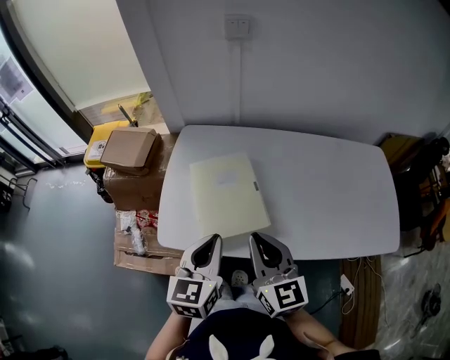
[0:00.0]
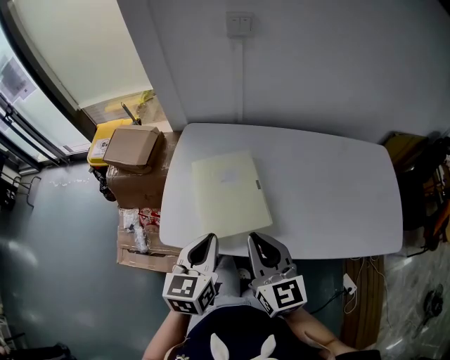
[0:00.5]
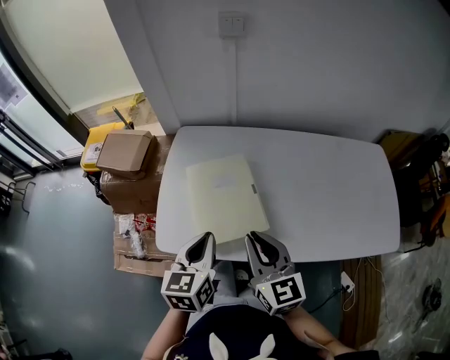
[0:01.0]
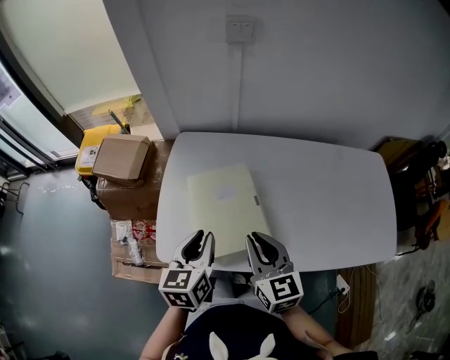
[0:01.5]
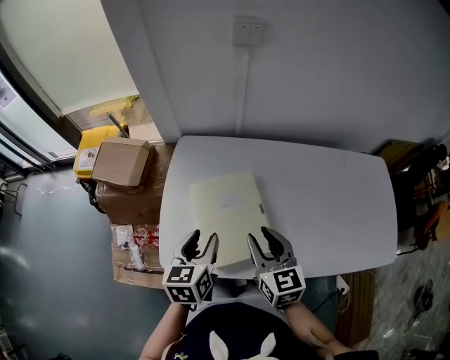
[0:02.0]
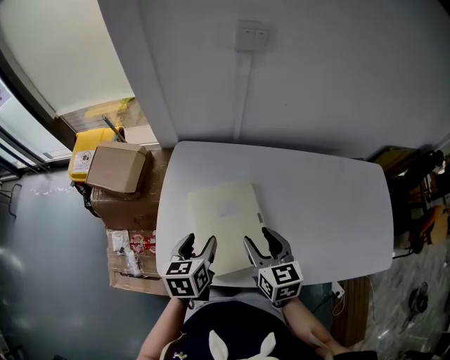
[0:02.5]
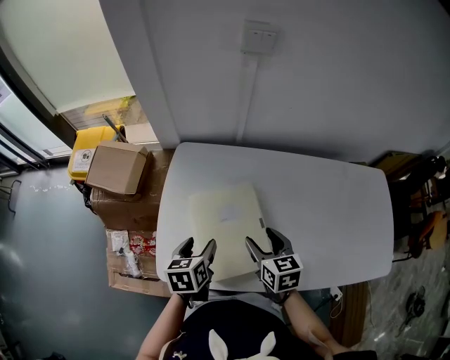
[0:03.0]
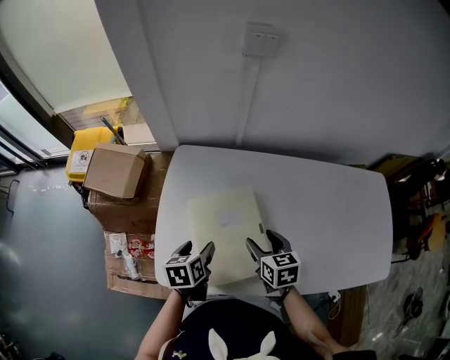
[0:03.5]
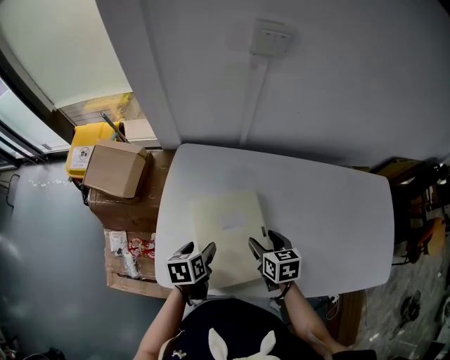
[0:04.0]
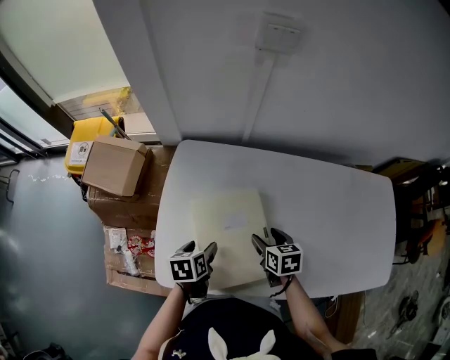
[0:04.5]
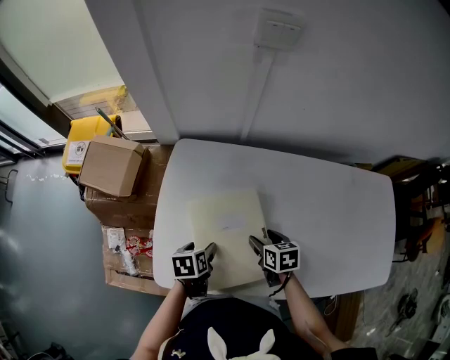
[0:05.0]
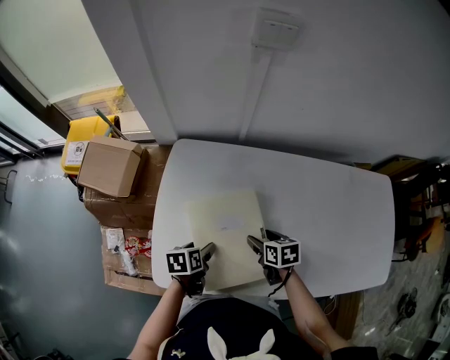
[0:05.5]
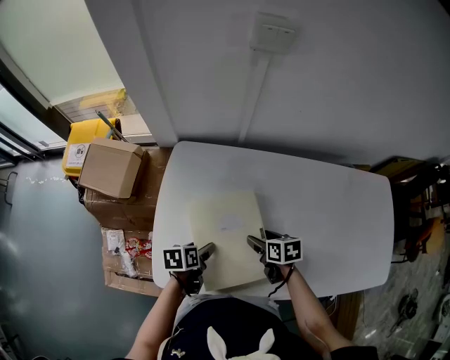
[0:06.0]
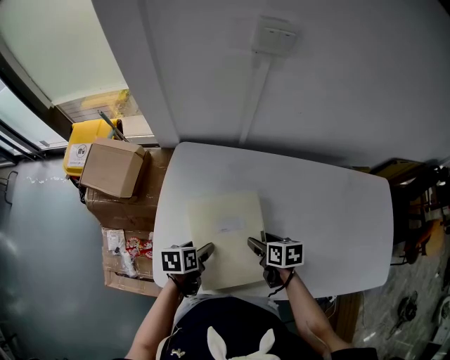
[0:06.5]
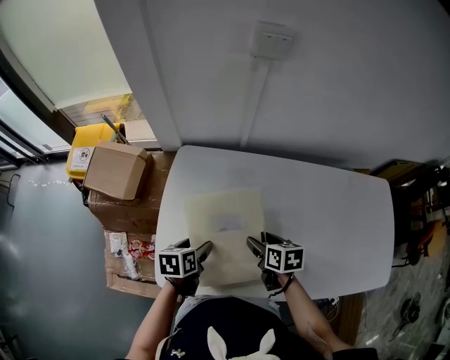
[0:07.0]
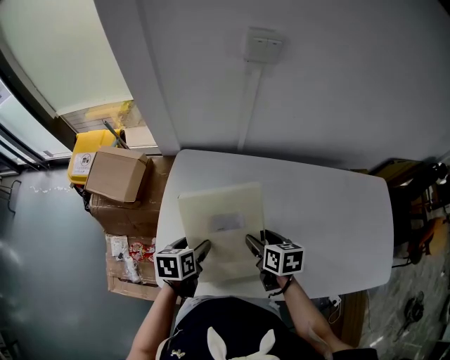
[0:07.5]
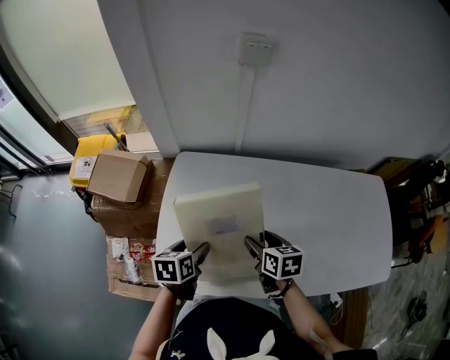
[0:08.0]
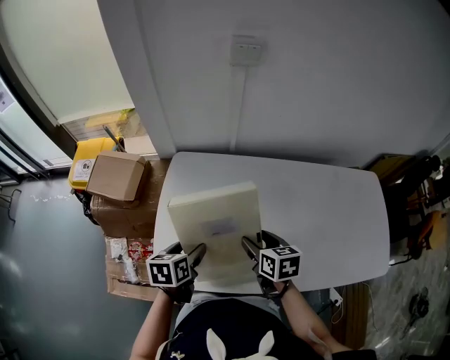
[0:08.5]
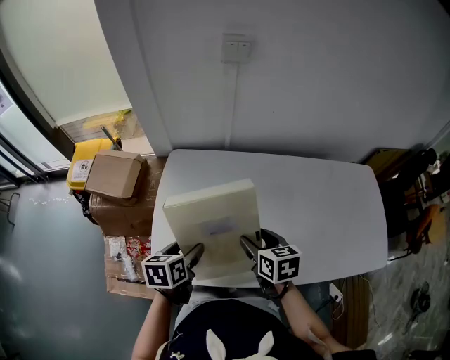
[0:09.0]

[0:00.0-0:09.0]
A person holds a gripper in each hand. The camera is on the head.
0:00.0 to 0:02.0: The left gripper travels forward, downward and to the left by roughly 15 cm, and opens its fingers, while the right gripper moves forward and downward, about 15 cm, and opens up.
0:02.0 to 0:04.5: The left gripper shifts some 15 cm downward, turns by approximately 30 degrees, and opens. The right gripper shifts some 20 cm downward and forward, rotates about 30 degrees, and opens up.
0:04.5 to 0:07.0: The grippers move only a little.
0:07.0 to 0:09.0: The grippers both shift upward and backward by about 10 cm.

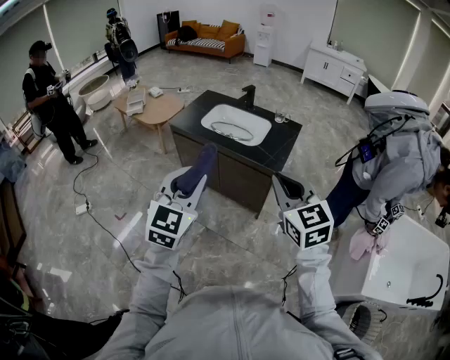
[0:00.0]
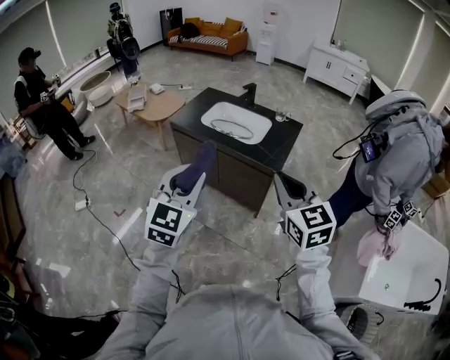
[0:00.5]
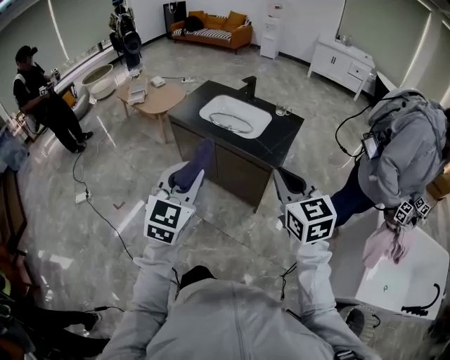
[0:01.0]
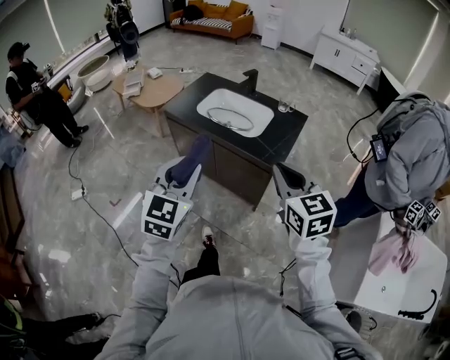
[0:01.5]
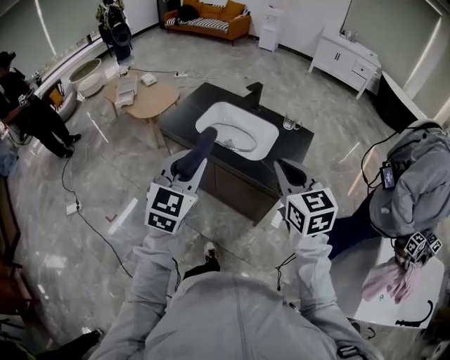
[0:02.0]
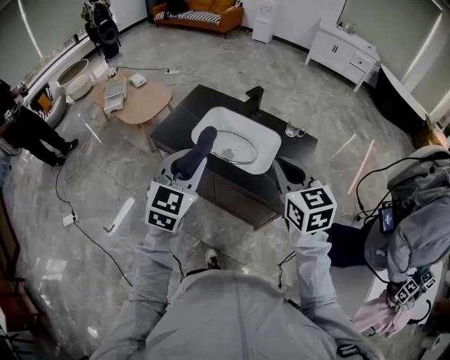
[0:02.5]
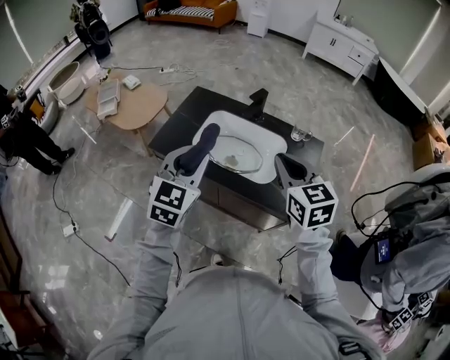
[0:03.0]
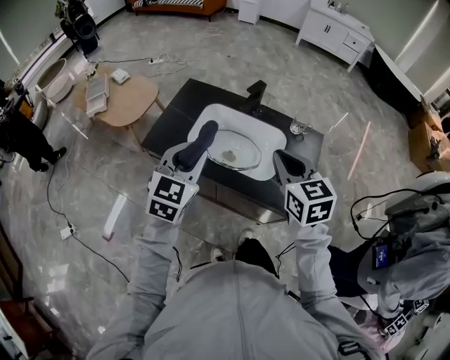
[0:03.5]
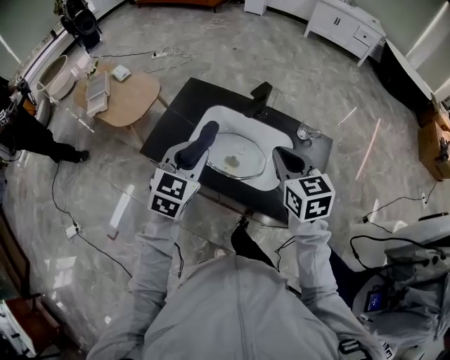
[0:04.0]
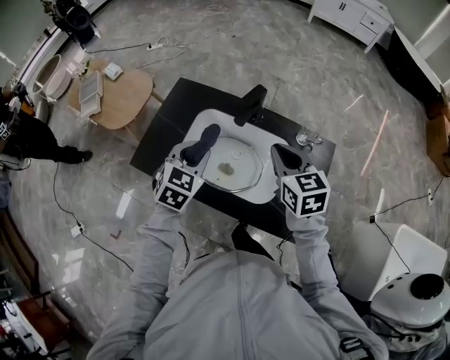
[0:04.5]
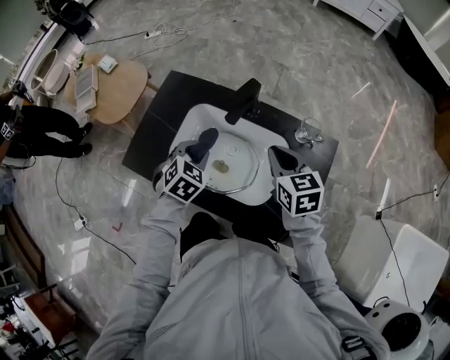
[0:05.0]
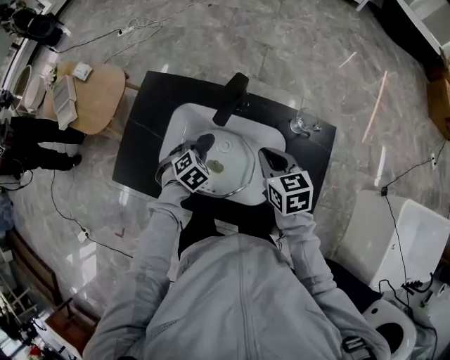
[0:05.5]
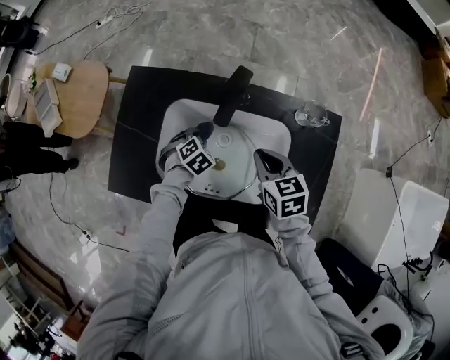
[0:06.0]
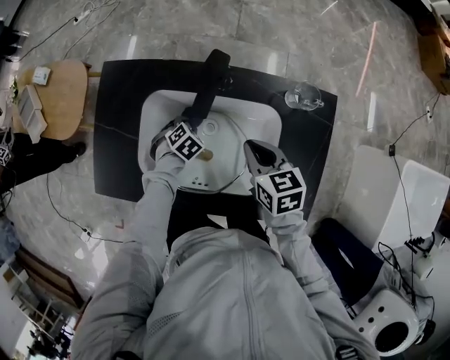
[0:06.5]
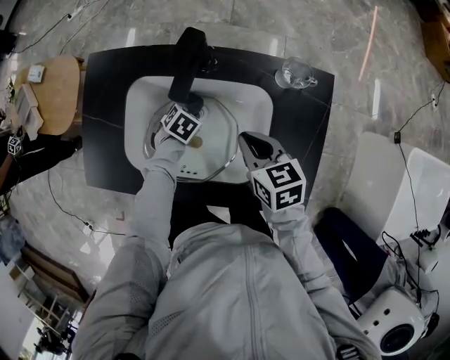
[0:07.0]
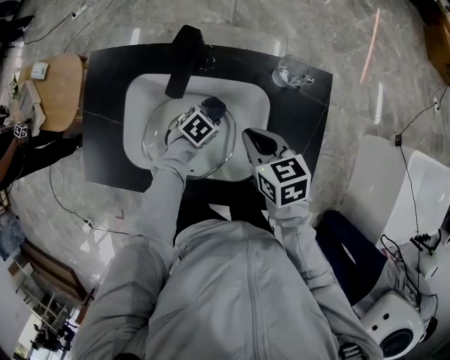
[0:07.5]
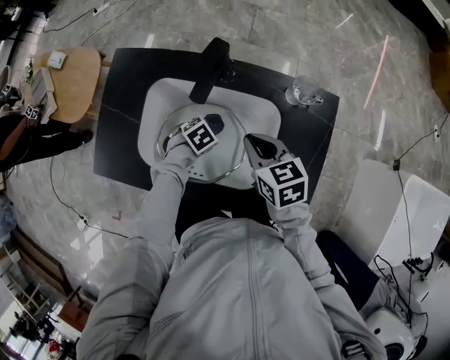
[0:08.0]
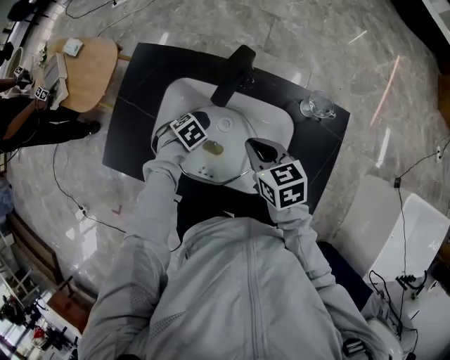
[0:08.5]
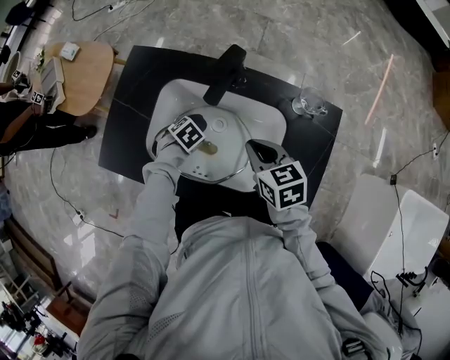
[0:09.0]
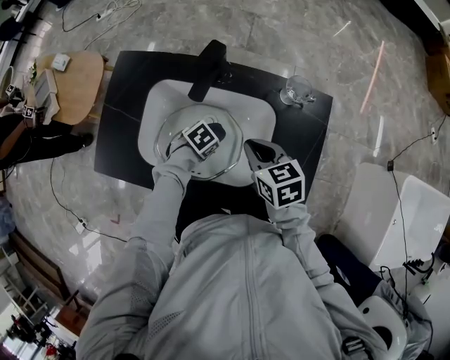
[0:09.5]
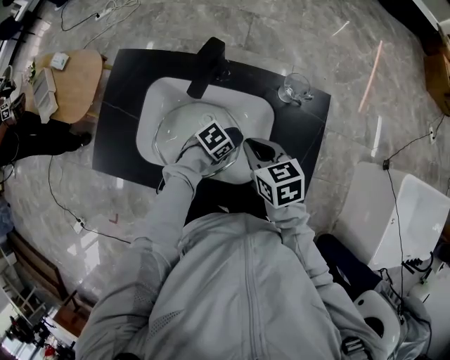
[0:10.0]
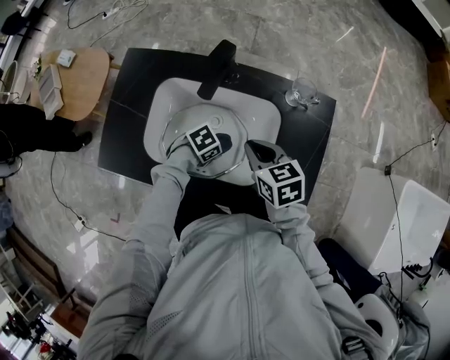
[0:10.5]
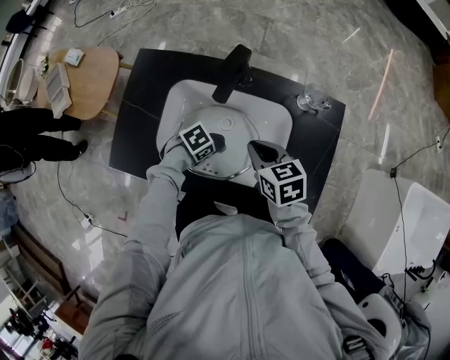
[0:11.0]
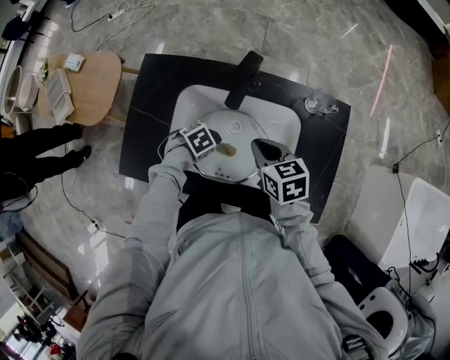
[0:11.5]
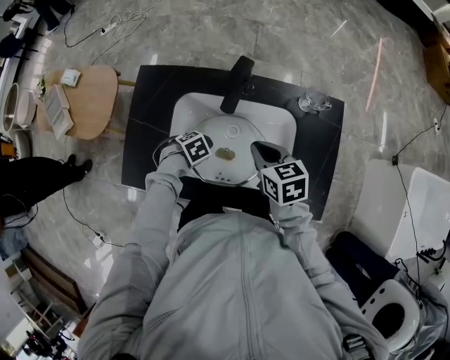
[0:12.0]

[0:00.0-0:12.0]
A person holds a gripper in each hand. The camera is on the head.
0:00.0 to 0:02.0: The two grippers go roughly 25 cm forward.
0:02.0 to 0:04.0: The grippers both shift forward by roughly 30 cm.
0:04.0 to 0:06.0: The left gripper goes roughly 40 cm downward and forward, and tips its fingers downward by approximately 50 degrees, while the right gripper travels downward and forward by approximately 25 cm, and changes its angle by approximately 20 degrees.
0:06.0 to 0:08.0: The left gripper ends up about 10 cm from where it was, and changes its angle by some 20 degrees.
0:08.0 to 0:10.0: The left gripper changes place by roughly 10 cm.
0:10.0 to 0:12.0: The right gripper moves some 5 cm. Meanwhile the left gripper ends up roughly 25 cm from where it was, and changes its angle by about 30 degrees.

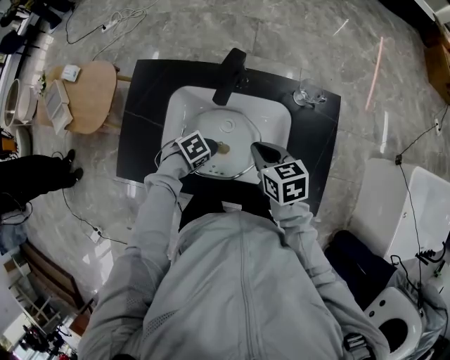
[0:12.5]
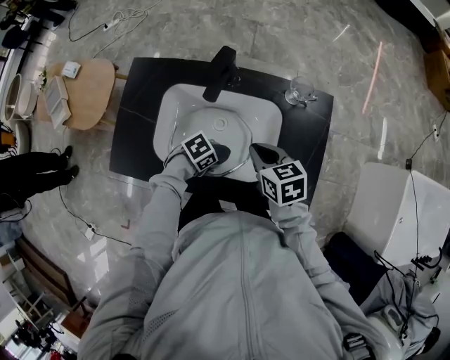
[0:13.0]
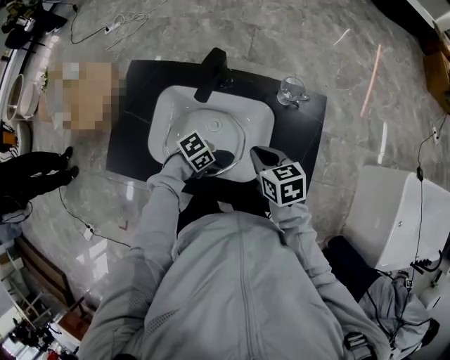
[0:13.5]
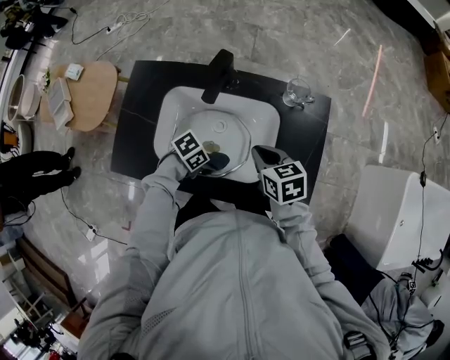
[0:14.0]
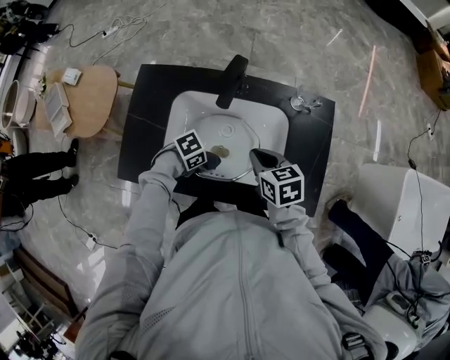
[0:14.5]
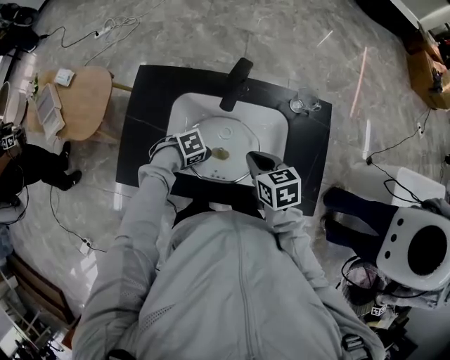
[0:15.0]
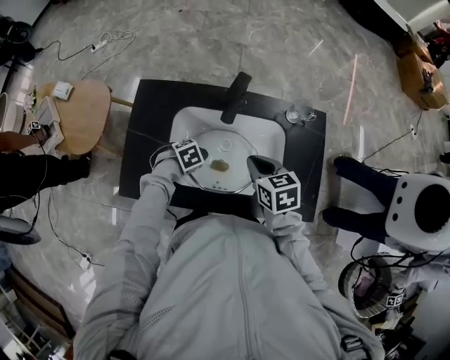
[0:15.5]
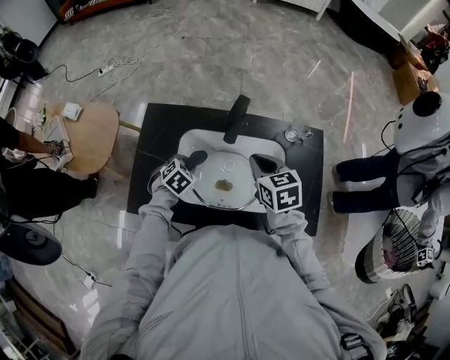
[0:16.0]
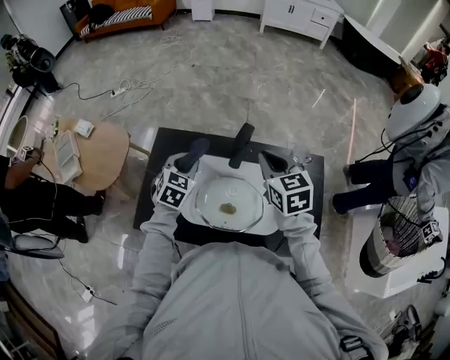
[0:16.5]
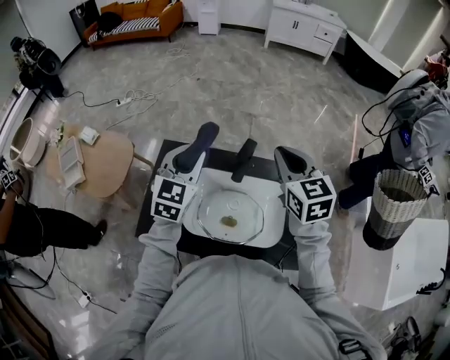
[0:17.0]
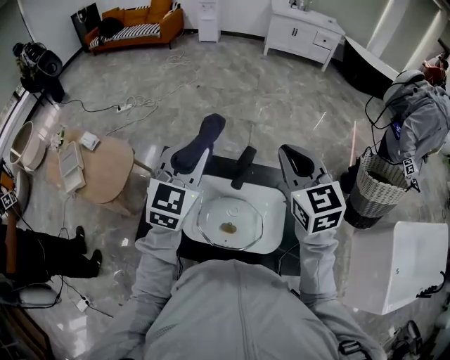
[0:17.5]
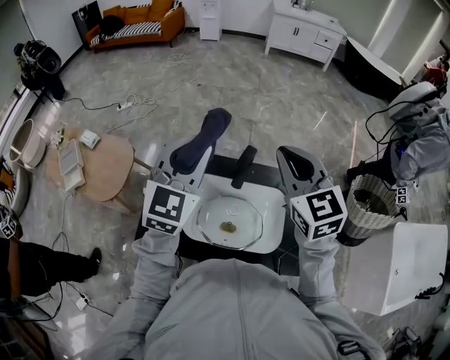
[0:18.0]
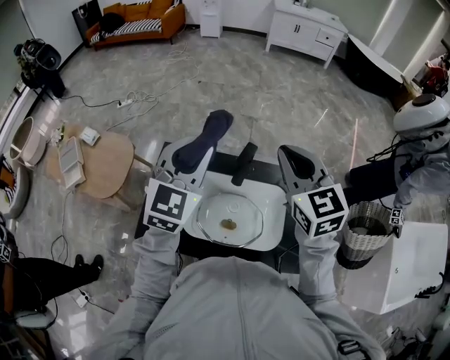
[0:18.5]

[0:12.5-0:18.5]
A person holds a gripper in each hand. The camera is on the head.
0:14.5 to 0:16.5: The right gripper travels upward by about 15 cm, and turns by roughly 30 degrees, while the left gripper moves about 30 cm, and changes its angle by some 70 degrees.
0:16.5 to 0:18.5: The left gripper heads upward, covering approximately 25 cm, and turns by about 30 degrees. Meanwhile the right gripper heads upward, covering roughly 15 cm.
